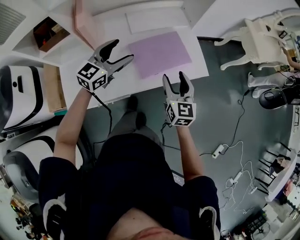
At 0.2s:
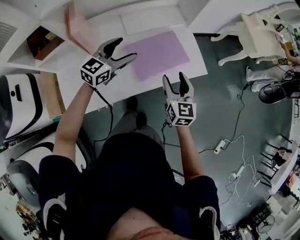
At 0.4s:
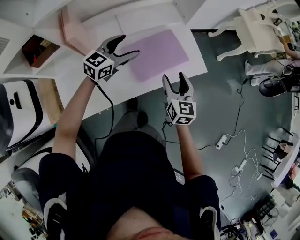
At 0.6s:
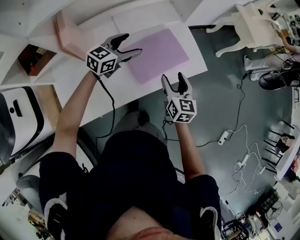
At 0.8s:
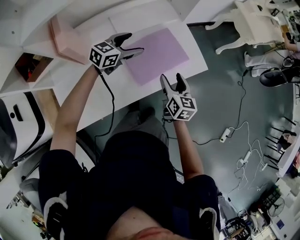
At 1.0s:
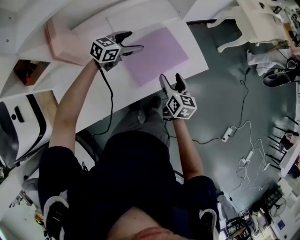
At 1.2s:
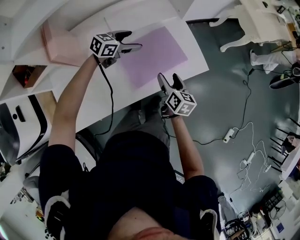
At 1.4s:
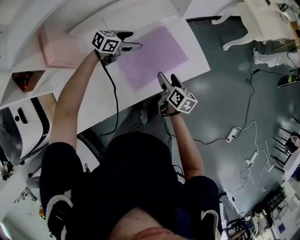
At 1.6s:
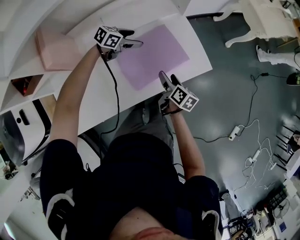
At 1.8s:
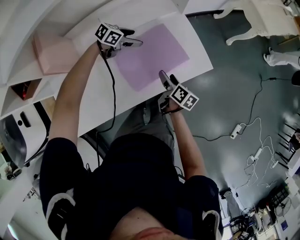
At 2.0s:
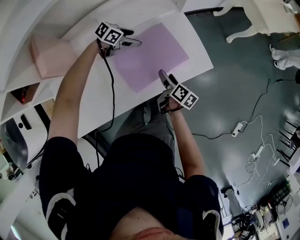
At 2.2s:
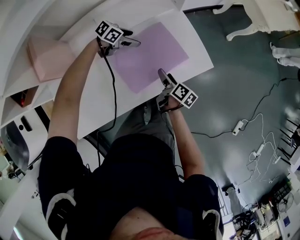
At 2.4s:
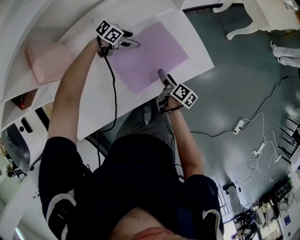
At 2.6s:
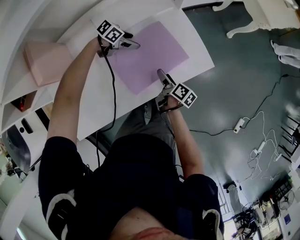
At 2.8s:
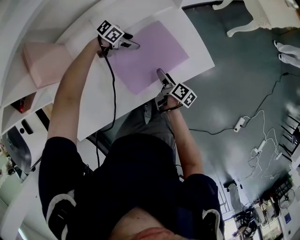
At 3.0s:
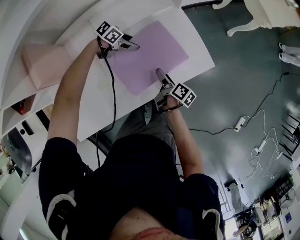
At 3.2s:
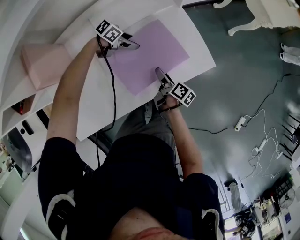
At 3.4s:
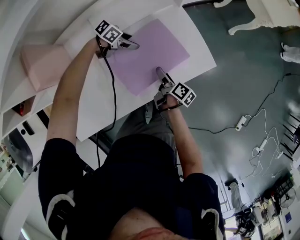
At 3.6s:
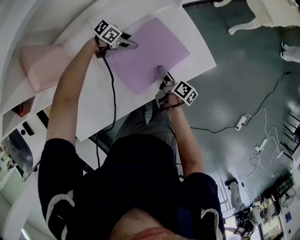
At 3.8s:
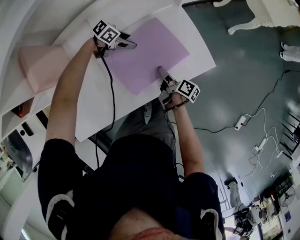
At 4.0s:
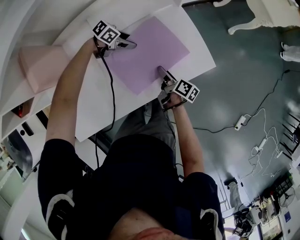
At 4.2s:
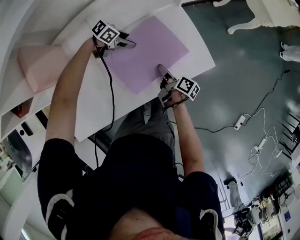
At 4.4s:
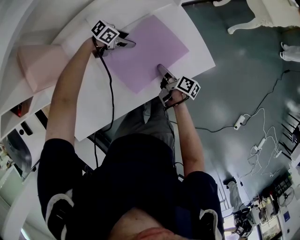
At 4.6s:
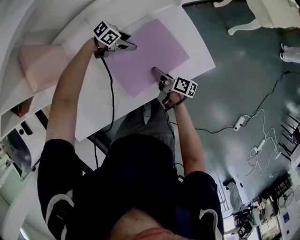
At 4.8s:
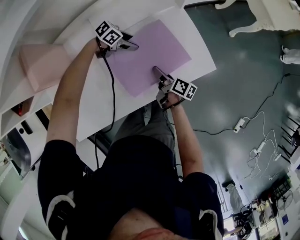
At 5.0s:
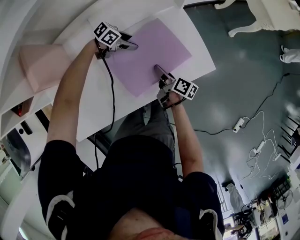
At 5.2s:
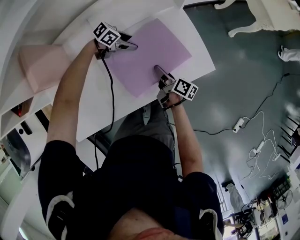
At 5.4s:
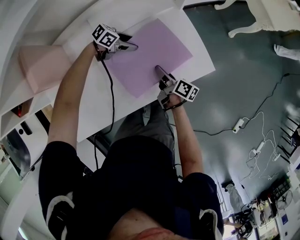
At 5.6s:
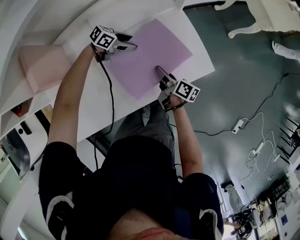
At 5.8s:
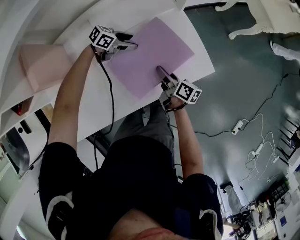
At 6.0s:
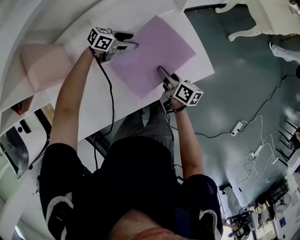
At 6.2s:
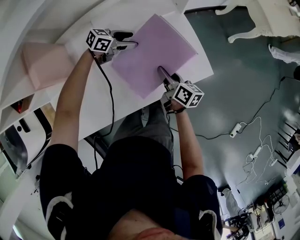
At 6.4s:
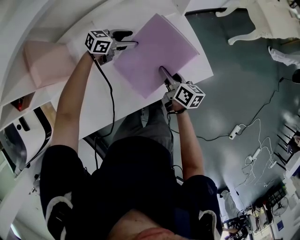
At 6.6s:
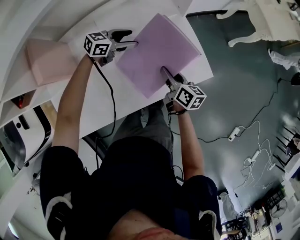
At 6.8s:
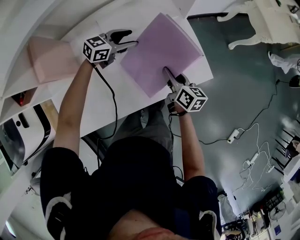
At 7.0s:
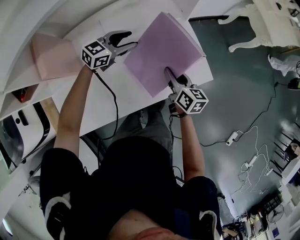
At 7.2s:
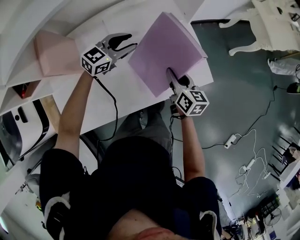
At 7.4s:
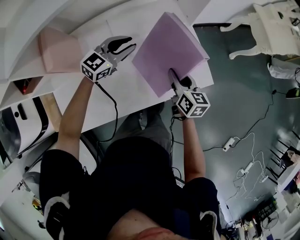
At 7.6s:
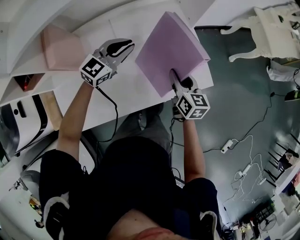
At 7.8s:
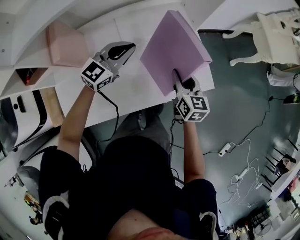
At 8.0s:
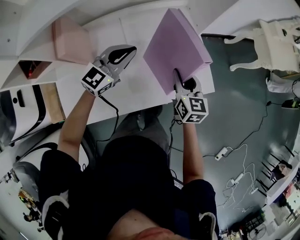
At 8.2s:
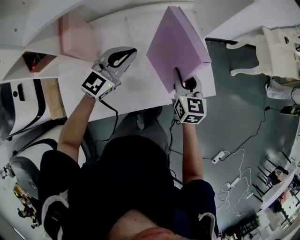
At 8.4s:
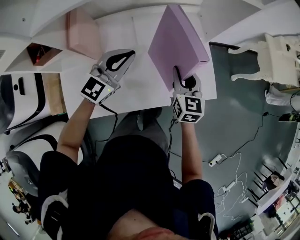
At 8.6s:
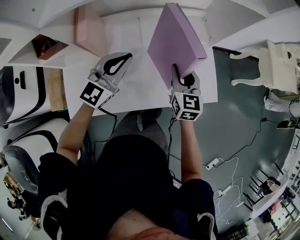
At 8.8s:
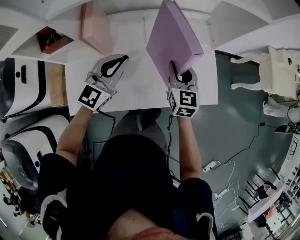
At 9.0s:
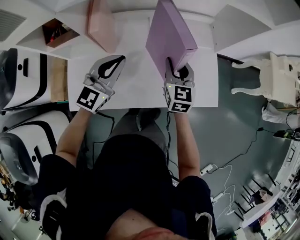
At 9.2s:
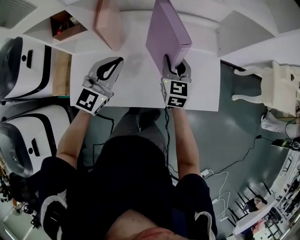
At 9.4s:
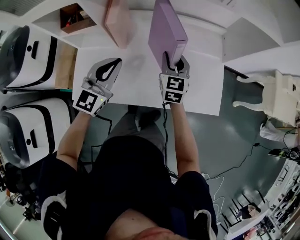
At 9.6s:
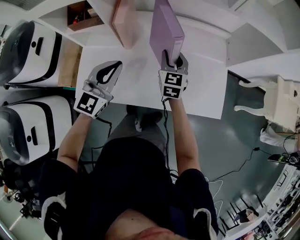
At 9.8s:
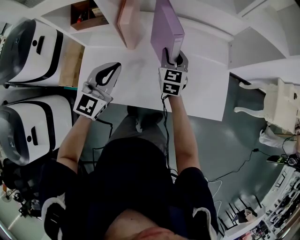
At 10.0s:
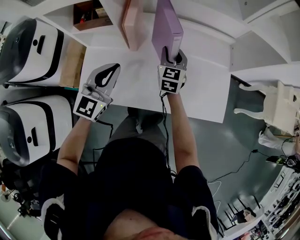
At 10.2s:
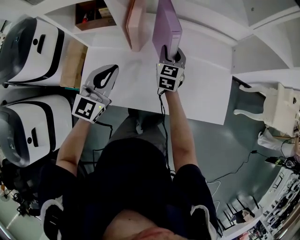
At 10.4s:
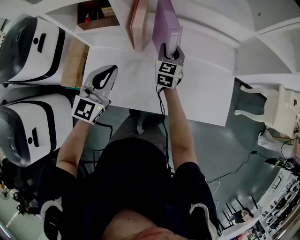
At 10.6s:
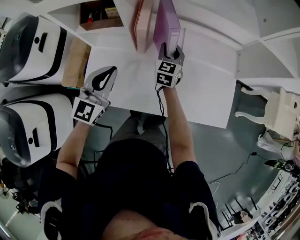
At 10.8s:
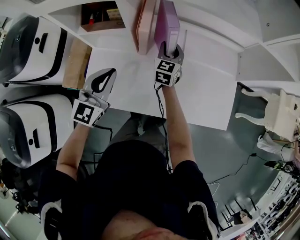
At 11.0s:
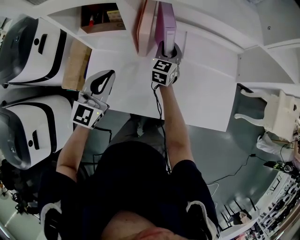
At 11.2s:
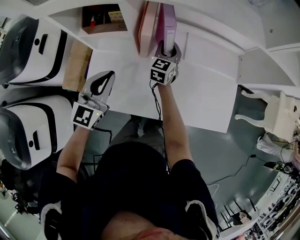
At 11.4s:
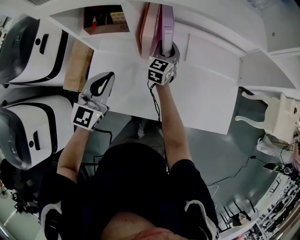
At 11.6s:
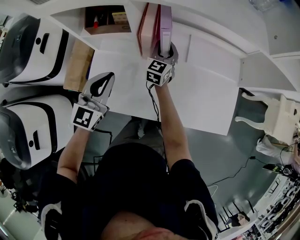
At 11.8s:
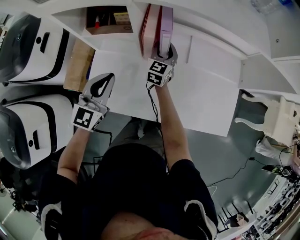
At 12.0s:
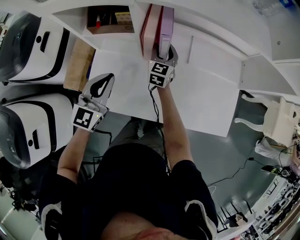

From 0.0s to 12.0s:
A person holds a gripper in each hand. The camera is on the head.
From 0.0s to 1.6s: The left gripper heads forward and downward, covering approximately 30 cm, and turns by roughly 50 degrees. Meanwhile the right gripper goes approximately 20 cm downward and forward, and rolls clockwise, seen from behind, by some 50 degrees.
From 1.6s to 3.0s: The two grippers go roughly 10 cm downward. The left gripper changes its angle by roughly 20 degrees; the right gripper rotates approximately 20 degrees.
From 3.0s to 4.4s: There are only small adjustments of the grippers.
From 4.4s to 6.0s: The right gripper is displaced upward by approximately 5 cm, and rotates roughly 20 degrees.
From 6.0s to 7.6s: The right gripper is displaced upward by roughly 10 cm, and turns by approximately 40 degrees. Meanwhile the left gripper heads upward, covering about 20 cm, turns by roughly 50 degrees, and closes up.
From 7.6s to 9.0s: The right gripper shifts about 20 cm to the left and upward, and changes its angle by about 30 degrees. The left gripper heads backward, to the left and upward, covering roughly 20 cm, and swivels some 30 degrees.
From 9.0s to 10.4s: The left gripper travels to the left and backward by about 15 cm. Meanwhile the right gripper travels to the left and forward by about 20 cm.
From 10.4s to 12.0s: The two grippers go some 10 cm to the left.

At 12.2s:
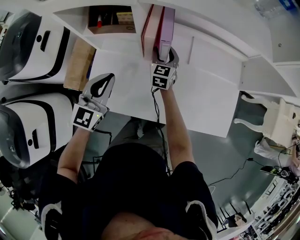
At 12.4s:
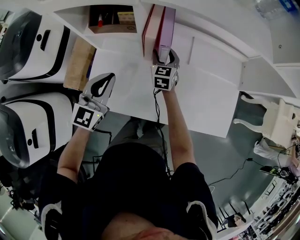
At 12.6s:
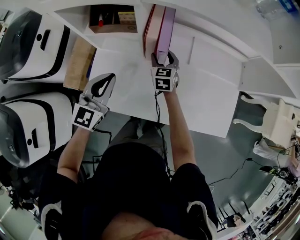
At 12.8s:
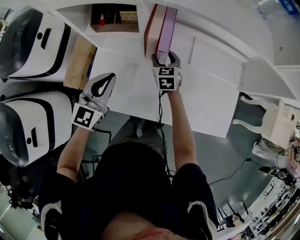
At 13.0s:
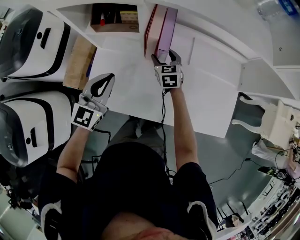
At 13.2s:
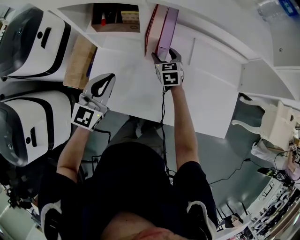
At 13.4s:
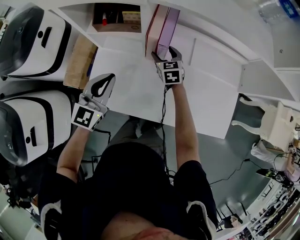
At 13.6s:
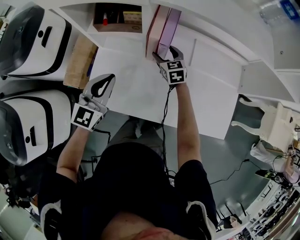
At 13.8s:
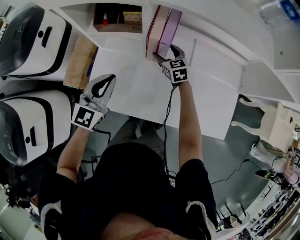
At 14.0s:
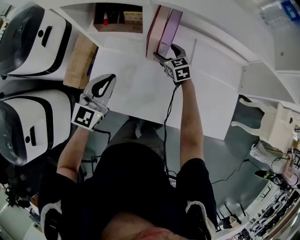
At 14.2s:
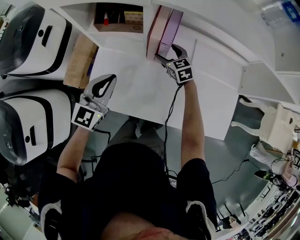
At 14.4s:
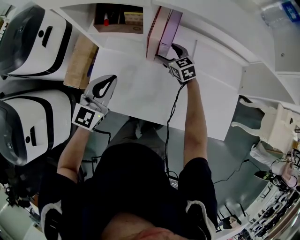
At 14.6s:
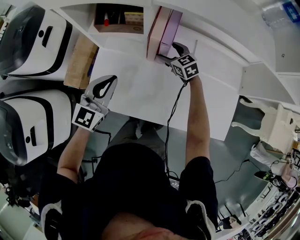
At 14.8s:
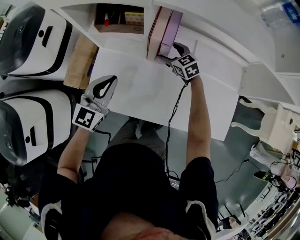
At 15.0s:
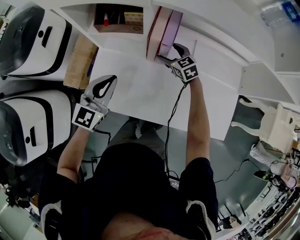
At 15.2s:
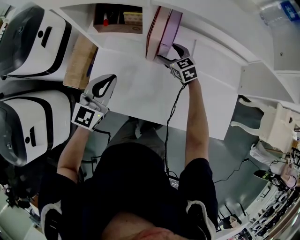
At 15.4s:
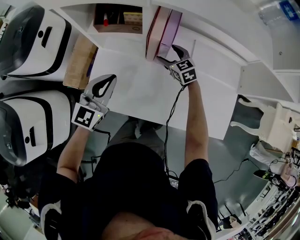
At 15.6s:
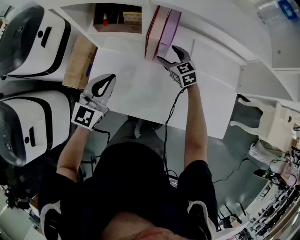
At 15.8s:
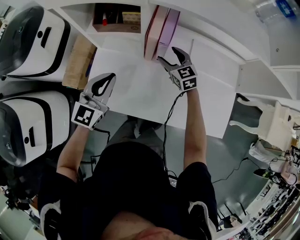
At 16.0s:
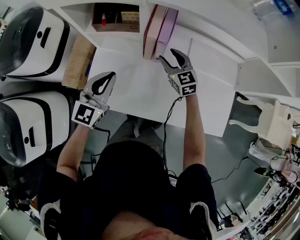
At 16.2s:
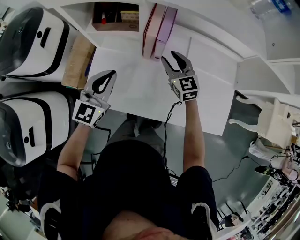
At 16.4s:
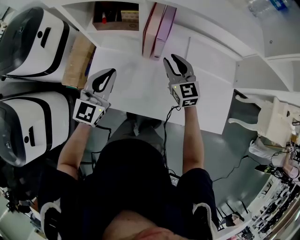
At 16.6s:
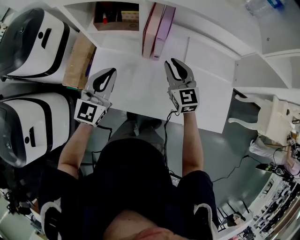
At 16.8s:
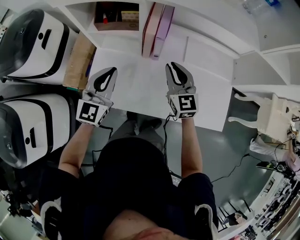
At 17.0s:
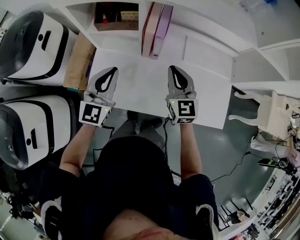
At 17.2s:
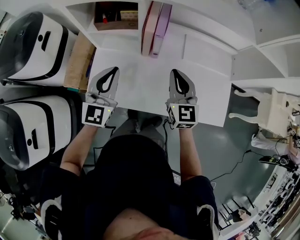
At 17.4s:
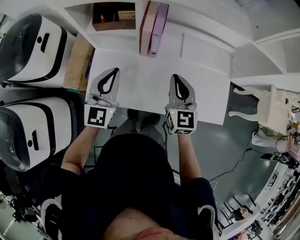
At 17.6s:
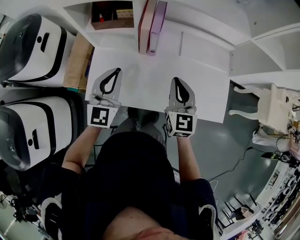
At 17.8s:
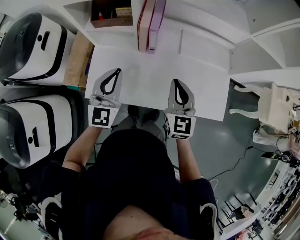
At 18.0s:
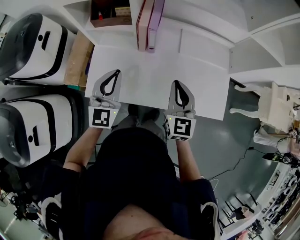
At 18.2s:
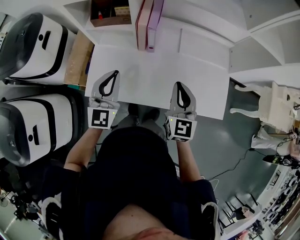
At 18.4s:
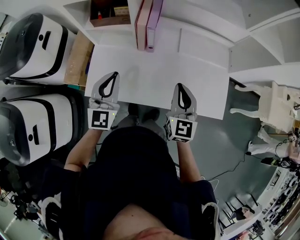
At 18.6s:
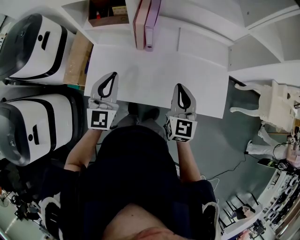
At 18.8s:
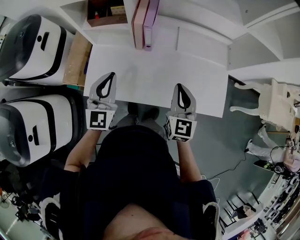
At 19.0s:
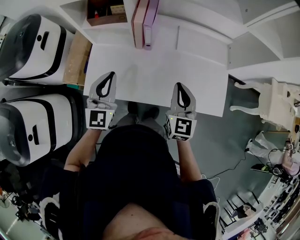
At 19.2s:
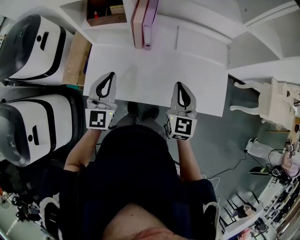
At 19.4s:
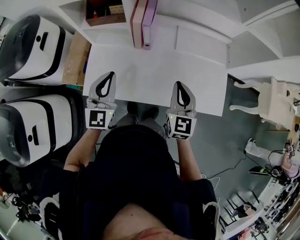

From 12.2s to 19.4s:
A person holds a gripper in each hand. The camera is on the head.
From 12.2s to 13.6s: The right gripper changes its angle by some 30 degrees.
From 13.6s to 15.0s: The grippers stay close to where they were, moving slightly.
From 15.0s to 16.6s: The right gripper shifts about 20 cm upward and backward, rotates roughly 30 degrees, and closes up.
From 16.6s to 18.0s: The right gripper goes some 15 cm backward and to the right, and swivels about 20 degrees; the left gripper ends up some 5 cm from where it was.
From 18.0s to 19.4s: The grippers stay close to where they were, moving slightly.

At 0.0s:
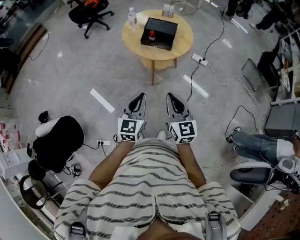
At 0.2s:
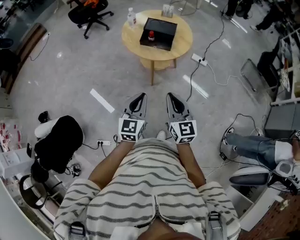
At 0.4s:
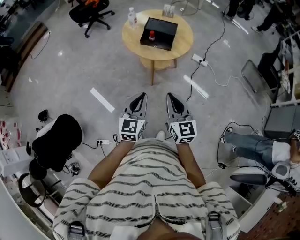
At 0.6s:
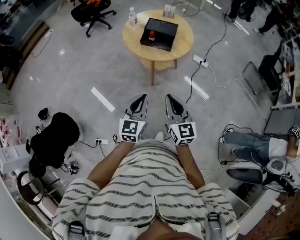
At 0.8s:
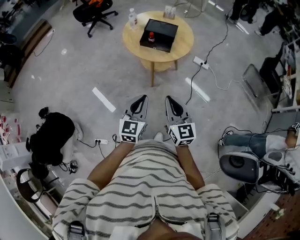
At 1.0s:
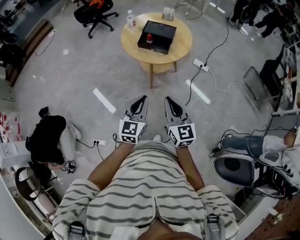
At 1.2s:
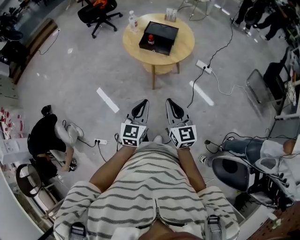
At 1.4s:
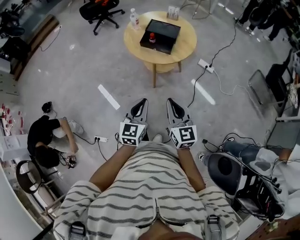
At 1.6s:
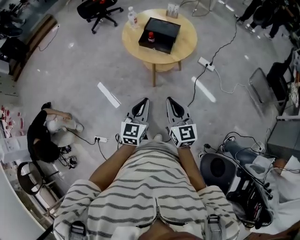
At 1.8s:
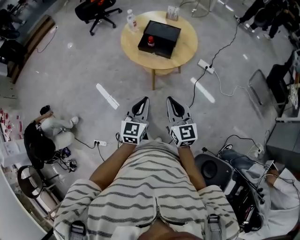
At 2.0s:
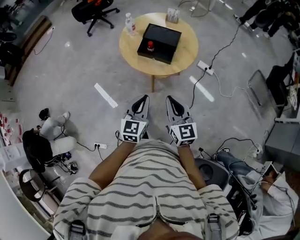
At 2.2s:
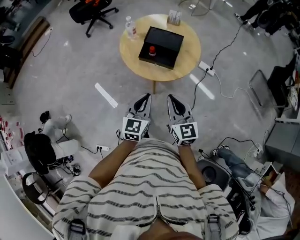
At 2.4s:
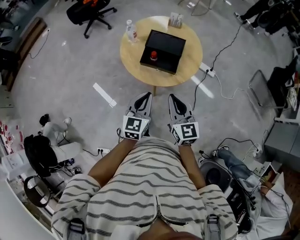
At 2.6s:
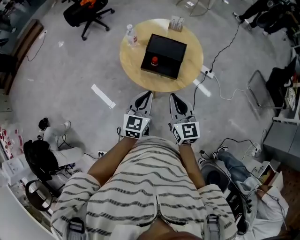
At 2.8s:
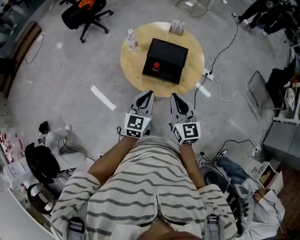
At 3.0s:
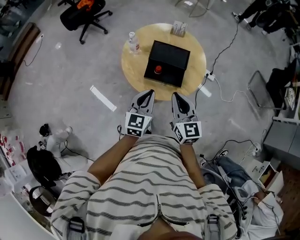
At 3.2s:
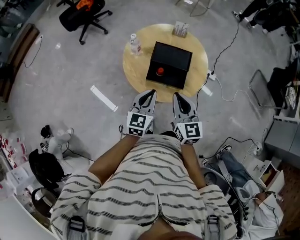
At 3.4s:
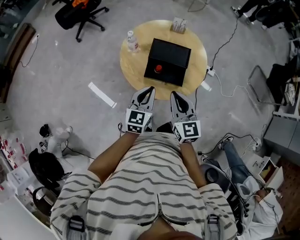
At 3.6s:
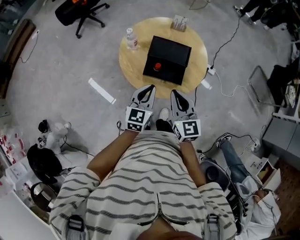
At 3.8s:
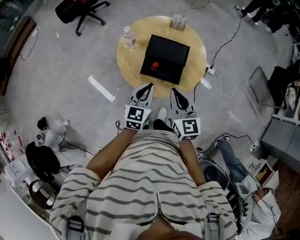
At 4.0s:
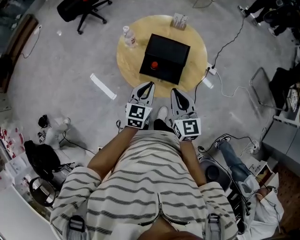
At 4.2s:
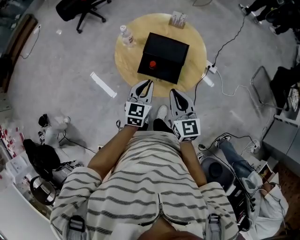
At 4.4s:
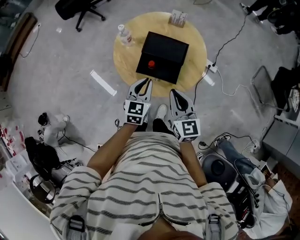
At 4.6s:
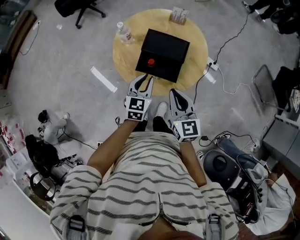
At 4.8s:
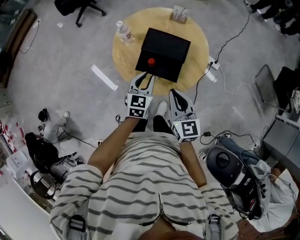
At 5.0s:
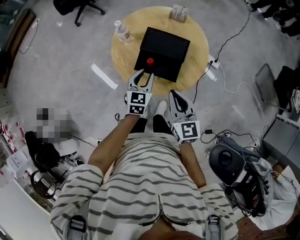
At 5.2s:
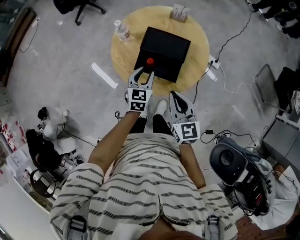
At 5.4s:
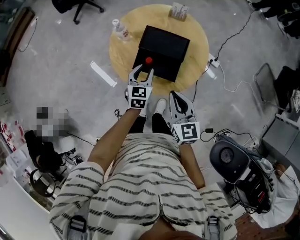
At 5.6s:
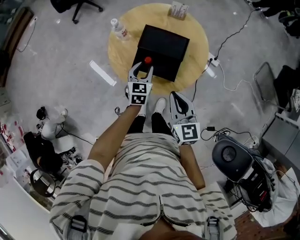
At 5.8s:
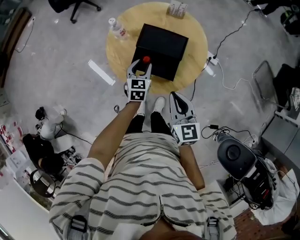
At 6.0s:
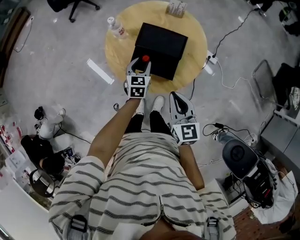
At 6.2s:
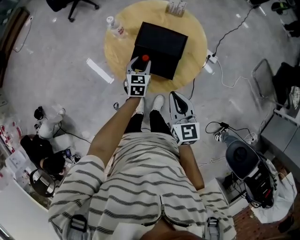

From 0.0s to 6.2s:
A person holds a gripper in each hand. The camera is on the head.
From 0.0s to 1.6s: Both grippers travel together to the right, about 10 cm.
From 1.6s to 3.2s: Both grippers move forward, roughly 30 cm.
From 3.2s to 4.6s: The left gripper heads downward and forward, covering roughly 10 cm. Meanwhile the right gripper goes roughly 5 cm to the right.
From 4.6s to 6.2s: The left gripper moves downward and forward, roughly 15 cm, and opens up.
